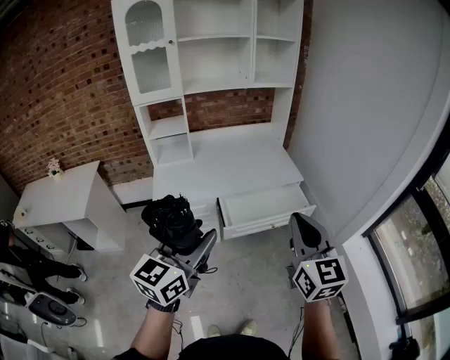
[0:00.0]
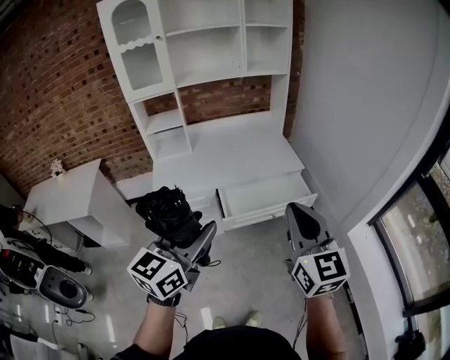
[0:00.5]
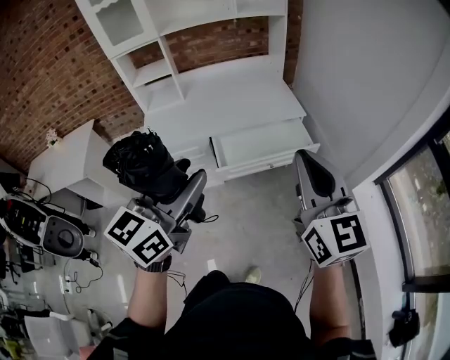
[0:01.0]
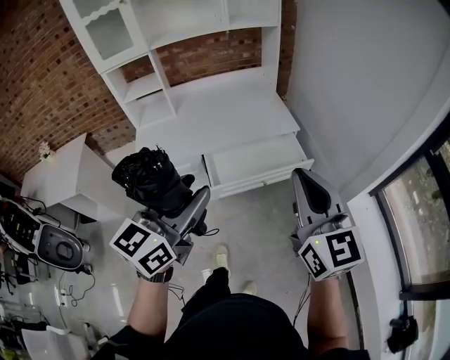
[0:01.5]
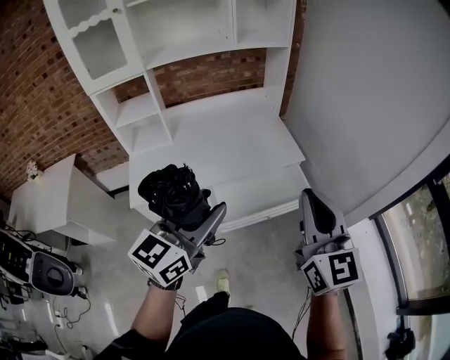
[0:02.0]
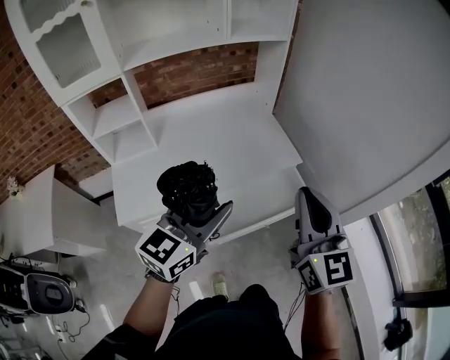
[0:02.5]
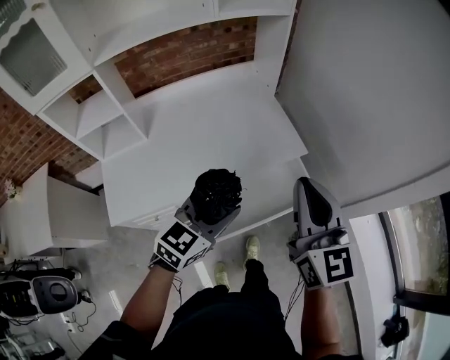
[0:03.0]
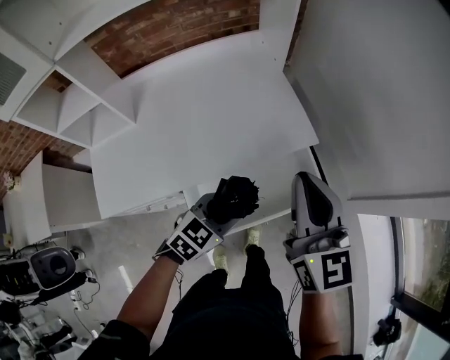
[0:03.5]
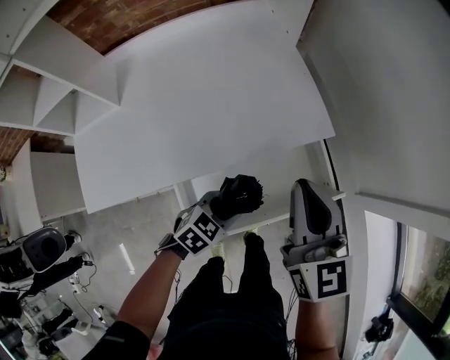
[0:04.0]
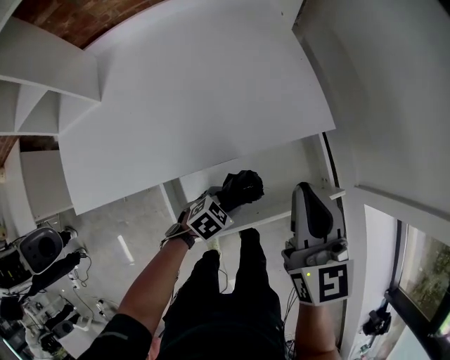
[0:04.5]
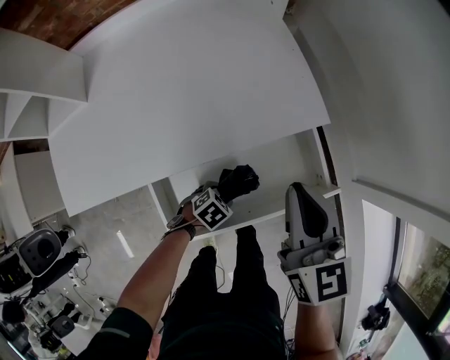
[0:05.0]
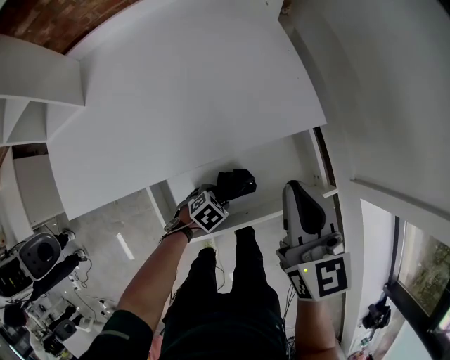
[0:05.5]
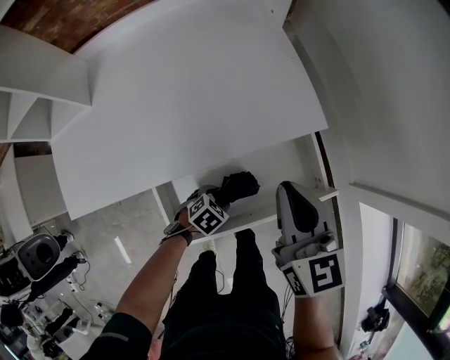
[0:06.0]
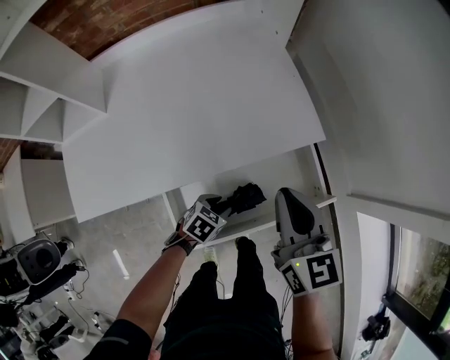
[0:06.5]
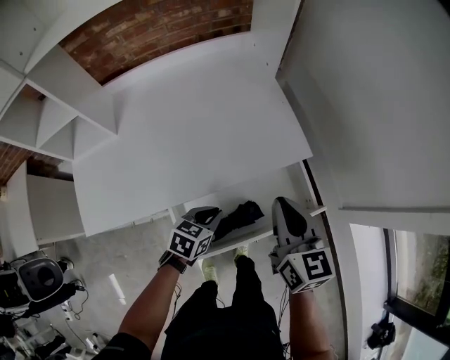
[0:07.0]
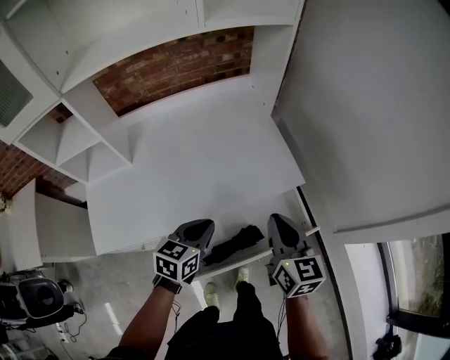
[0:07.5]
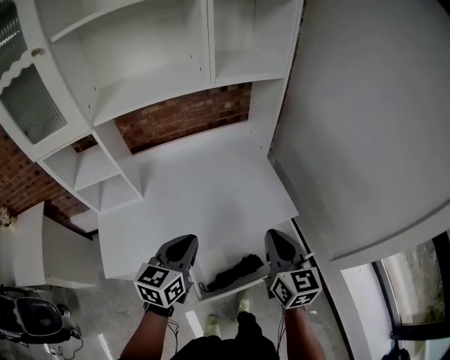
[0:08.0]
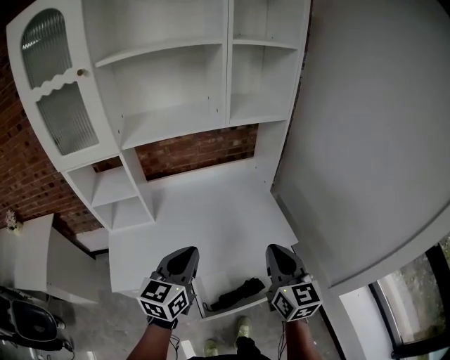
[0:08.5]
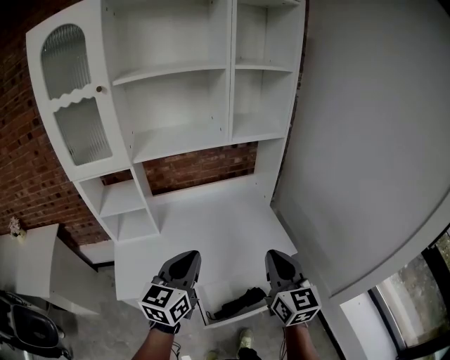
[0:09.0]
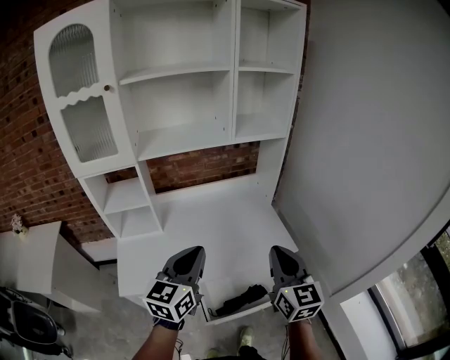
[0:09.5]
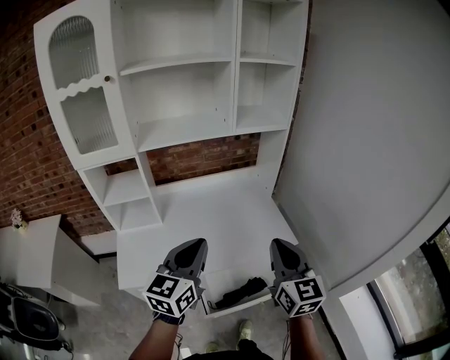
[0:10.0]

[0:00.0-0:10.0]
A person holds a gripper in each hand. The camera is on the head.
0:00.0 to 0:02.0: The two grippers go about 20 cm forward.
0:02.0 to 0:04.0: The right gripper heads forward and downward, covering approximately 40 cm. The left gripper travels downward and forward by approximately 50 cm, and points its fingers approximately 50 degrees further downward.
0:04.0 to 0:06.0: The left gripper moves downward, roughly 15 cm, and swivels some 20 degrees. Meanwhile the right gripper moves downward, approximately 10 cm.
0:06.0 to 0:08.0: The right gripper heads upward, covering approximately 15 cm. Meanwhile the left gripper goes some 50 cm upward, points its fingers approximately 50 degrees further upward, and closes.
0:08.0 to 0:10.0: The two grippers go some 15 cm upward and backward.

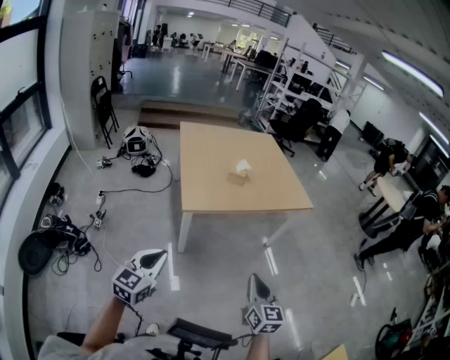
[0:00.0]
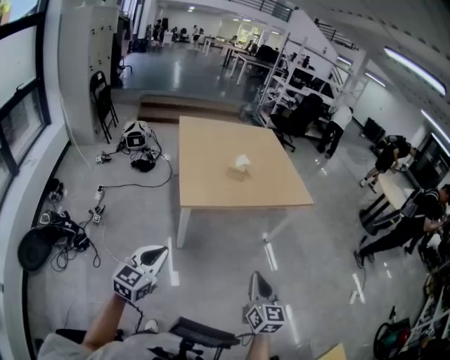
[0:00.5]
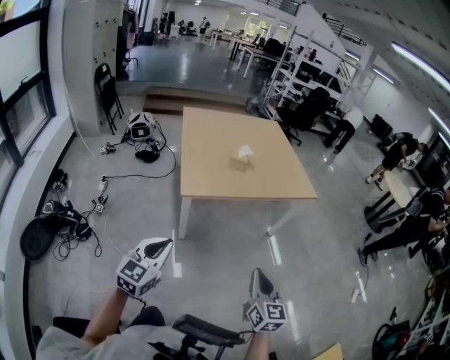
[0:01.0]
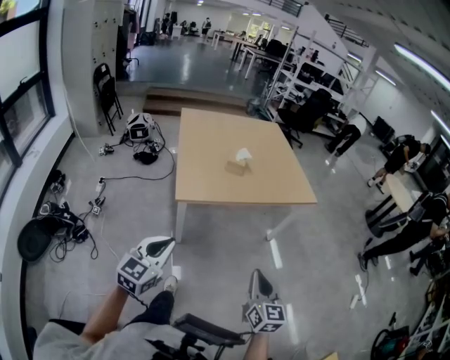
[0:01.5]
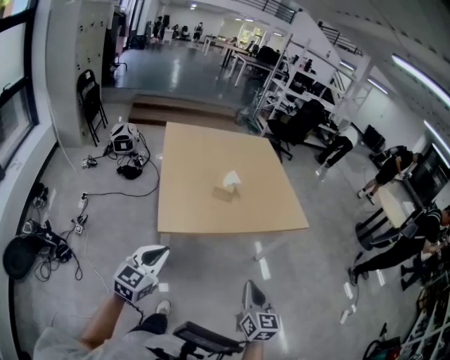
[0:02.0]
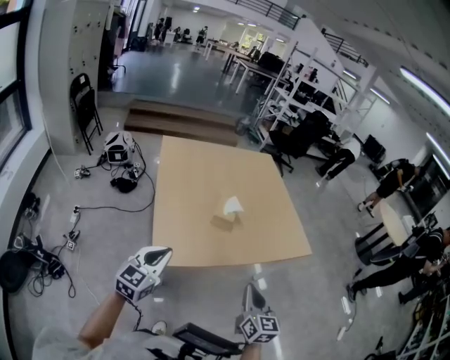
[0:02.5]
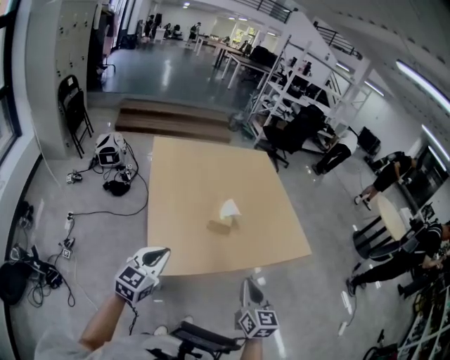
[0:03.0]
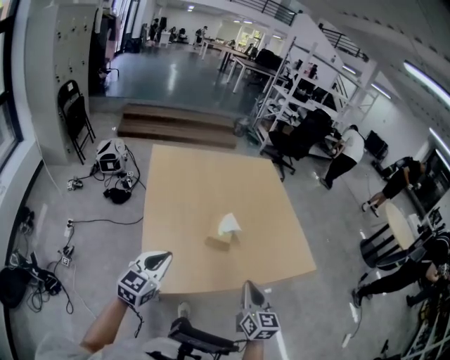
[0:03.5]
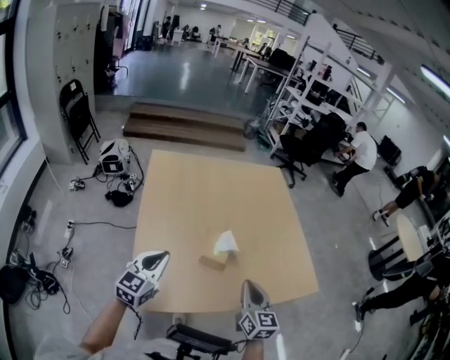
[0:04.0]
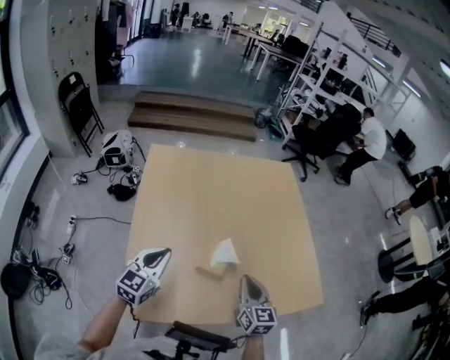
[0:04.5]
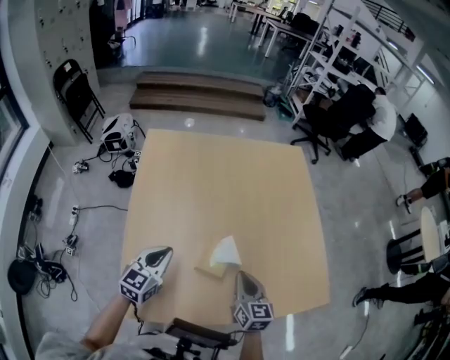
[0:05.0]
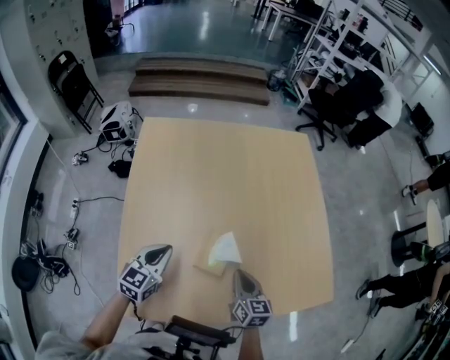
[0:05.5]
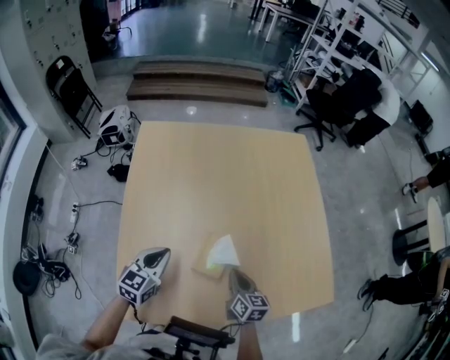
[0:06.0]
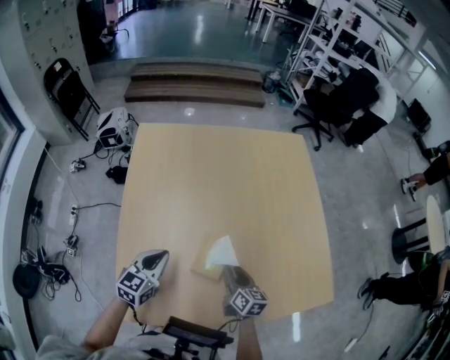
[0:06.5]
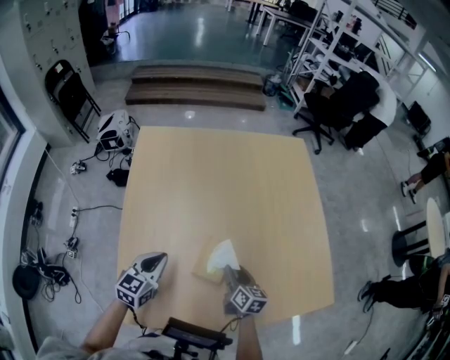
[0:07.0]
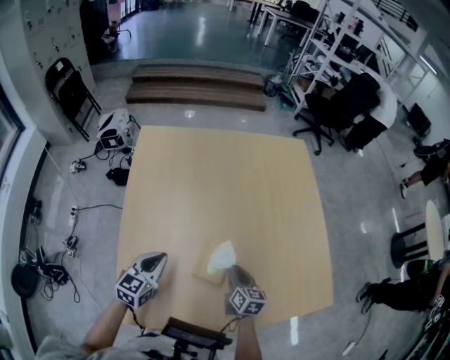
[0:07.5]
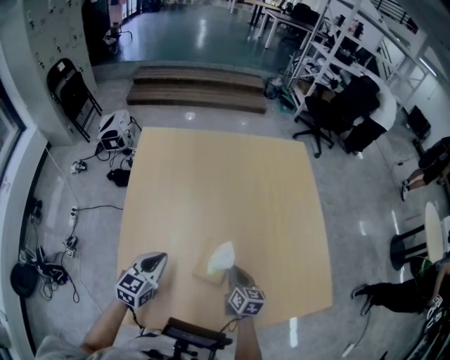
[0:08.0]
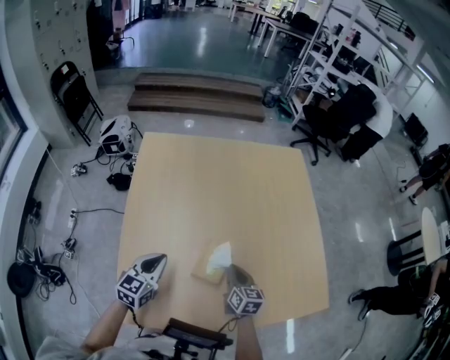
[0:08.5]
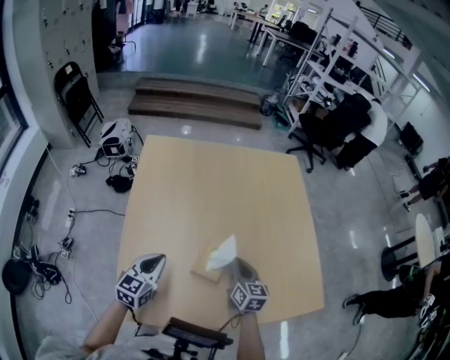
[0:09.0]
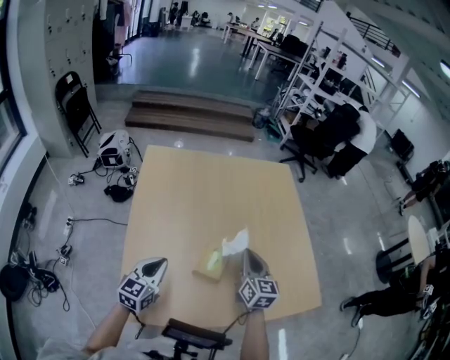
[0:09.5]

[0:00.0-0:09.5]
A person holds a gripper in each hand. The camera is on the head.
0:00.0 to 0:02.0: Both grippers move forward, approximately 20 cm.
0:02.0 to 0:04.0: The two grippers go roughly 40 cm forward.
0:04.0 to 0:05.5: The left gripper is displaced forward and downward by approximately 15 cm, while the right gripper shifts some 20 cm downward and forward.
0:05.5 to 0:07.5: The right gripper moves downward, approximately 5 cm, and opens, then closes again.
0:07.5 to 0:09.5: The right gripper goes roughly 20 cm upward, and swivels approximately 30 degrees; the left gripper changes place by approximately 5 cm.

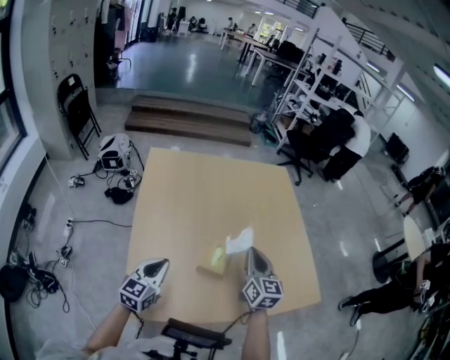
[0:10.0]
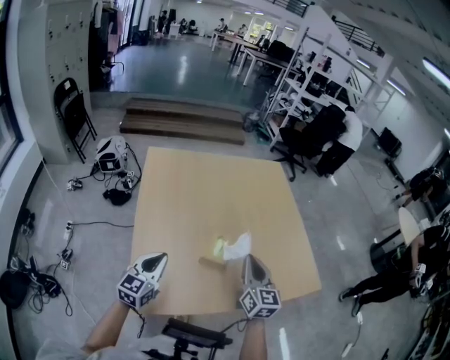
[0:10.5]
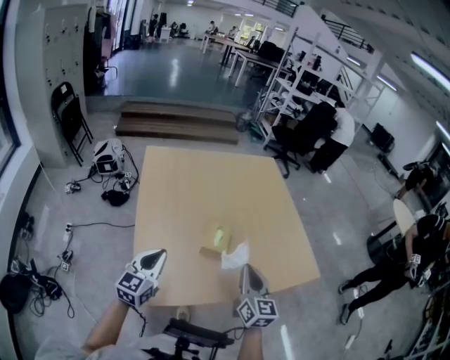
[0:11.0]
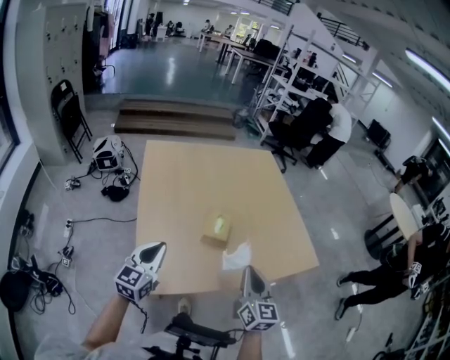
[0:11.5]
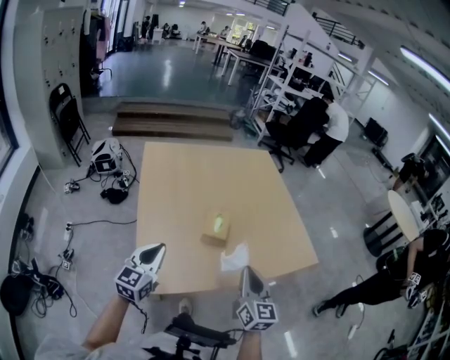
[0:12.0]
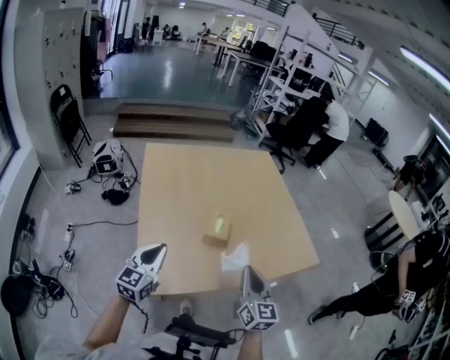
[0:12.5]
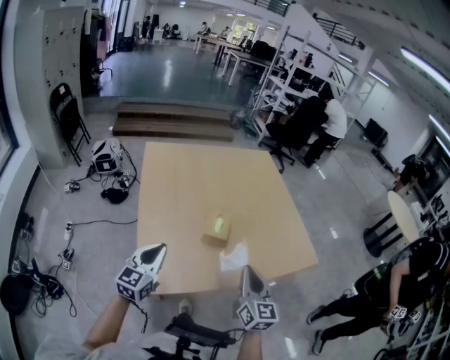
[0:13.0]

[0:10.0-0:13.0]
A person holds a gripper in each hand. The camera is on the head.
0:10.0 to 0:11.5: The left gripper is displaced backward and upward by some 10 cm. Meanwhile the right gripper heads backward, covering roughly 25 cm.
0:11.5 to 0:13.0: The grippers move only a little.

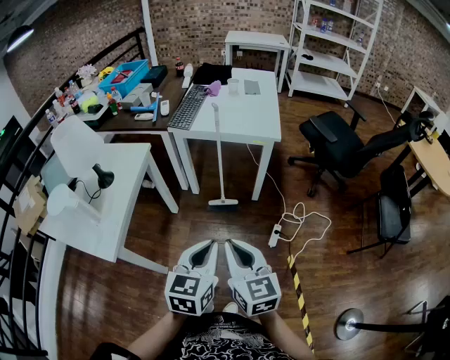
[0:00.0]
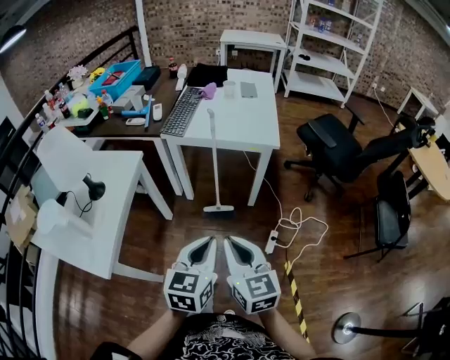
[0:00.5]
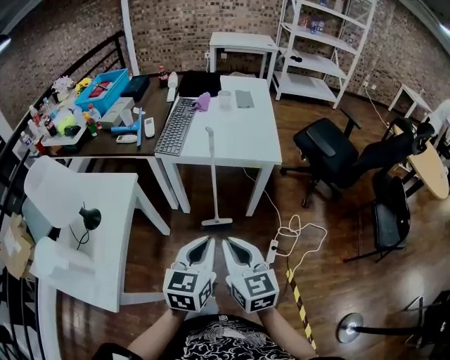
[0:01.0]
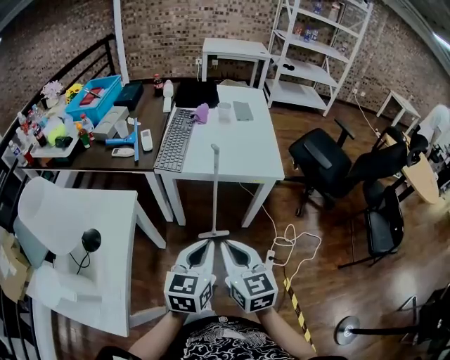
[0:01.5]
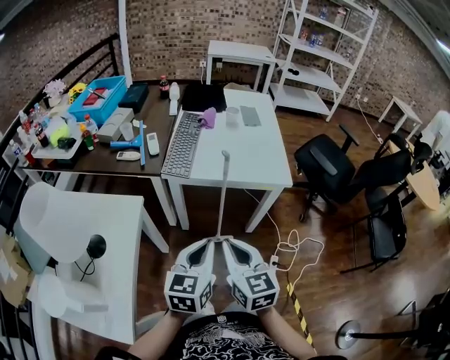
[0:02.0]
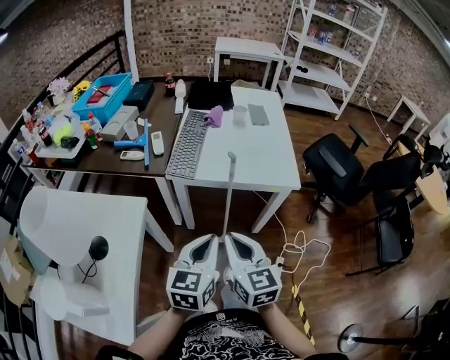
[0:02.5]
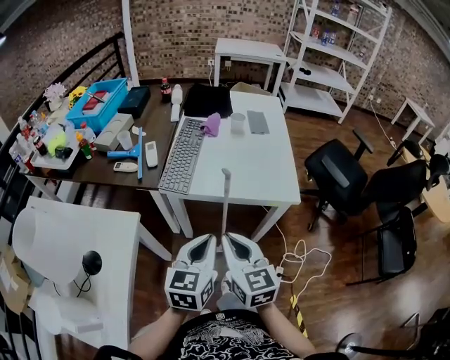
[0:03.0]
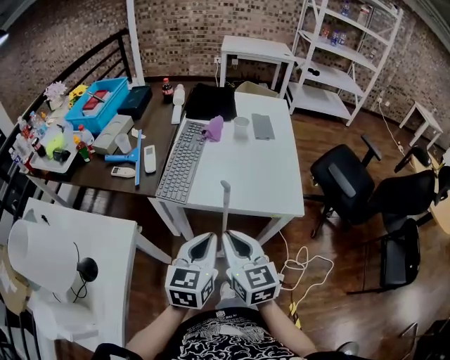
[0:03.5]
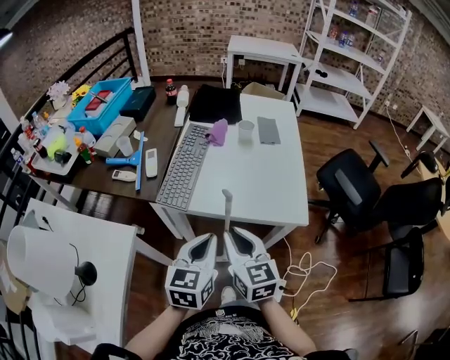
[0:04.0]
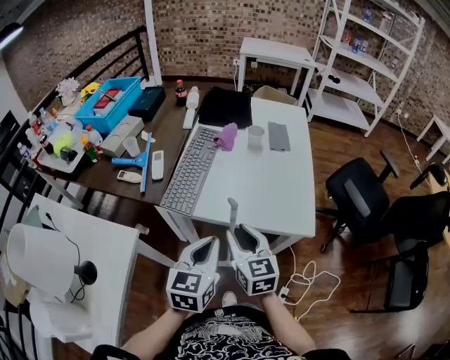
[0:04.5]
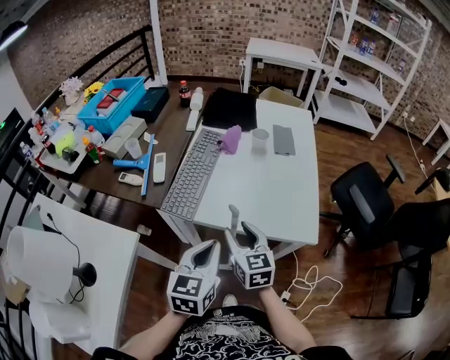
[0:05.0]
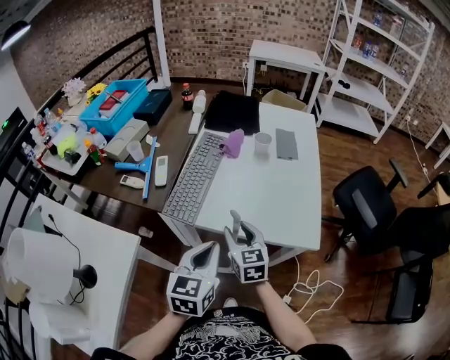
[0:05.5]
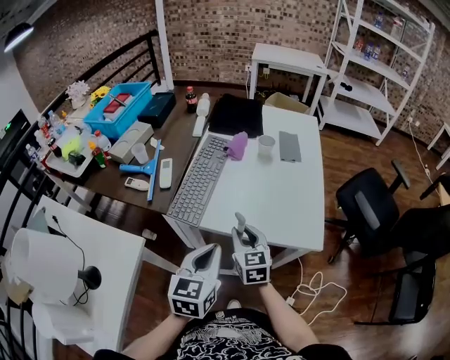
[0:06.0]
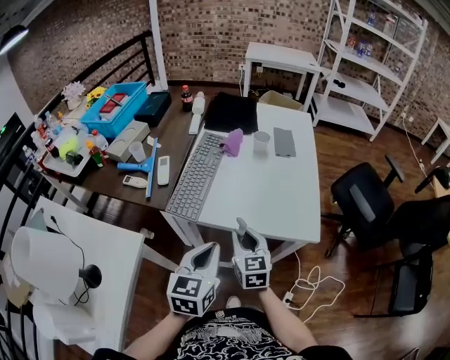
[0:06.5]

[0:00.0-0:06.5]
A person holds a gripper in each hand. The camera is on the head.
0:00.0 to 0:02.0: The left gripper travels forward and to the left by about 30 cm. Meanwhile the right gripper travels forward by about 25 cm.
0:02.0 to 0:04.5: Both grippers travel together forward, about 25 cm. The right gripper opens its fingers.
0:04.5 to 0:06.5: The right gripper travels downward by some 5 cm.
